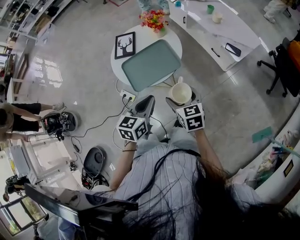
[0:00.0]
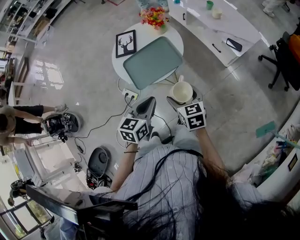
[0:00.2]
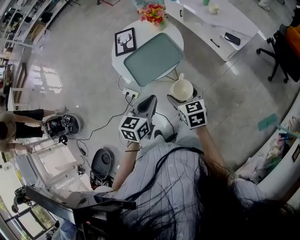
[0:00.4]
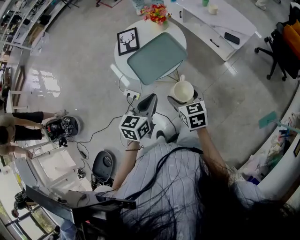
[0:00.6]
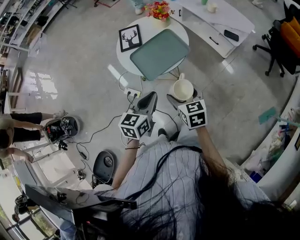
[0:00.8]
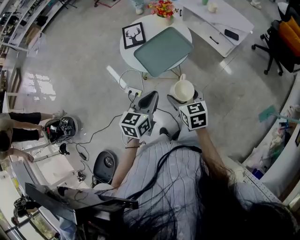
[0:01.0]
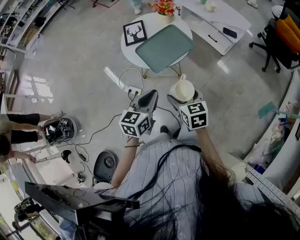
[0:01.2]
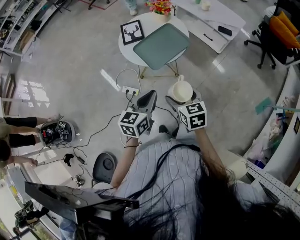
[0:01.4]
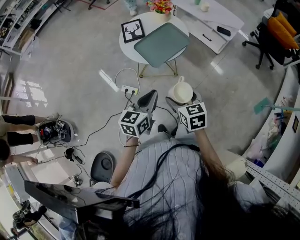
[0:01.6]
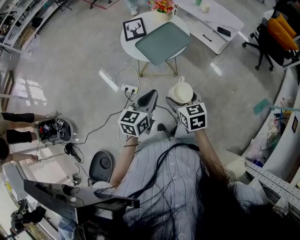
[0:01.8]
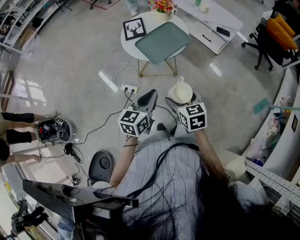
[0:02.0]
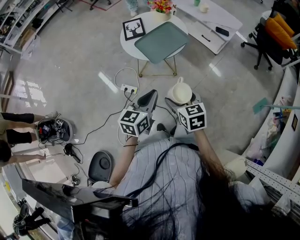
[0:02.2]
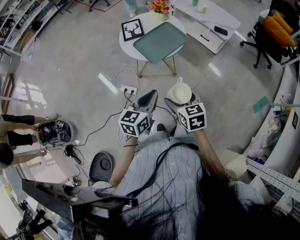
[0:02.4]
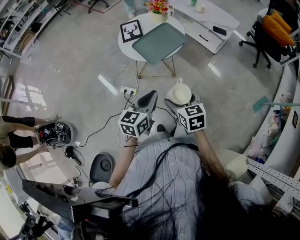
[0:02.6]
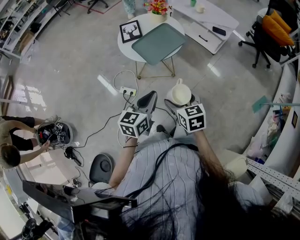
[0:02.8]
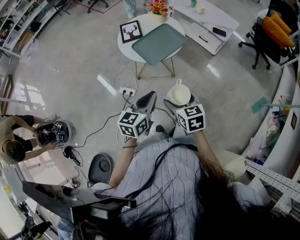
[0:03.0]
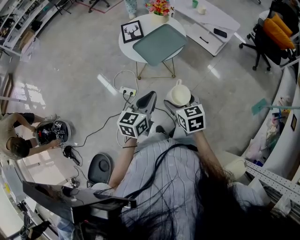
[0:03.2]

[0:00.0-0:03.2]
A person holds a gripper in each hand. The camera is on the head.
0:00.0 to 0:01.6: Both grippers travel together backward and to the left, some 20 cm.
0:01.6 to 0:03.2: The grippers stay close to where they were, moving slightly.

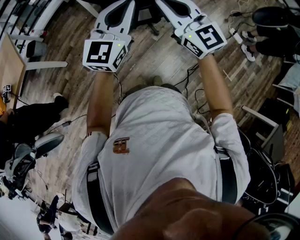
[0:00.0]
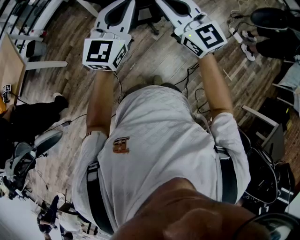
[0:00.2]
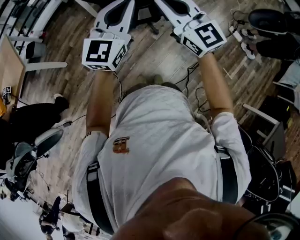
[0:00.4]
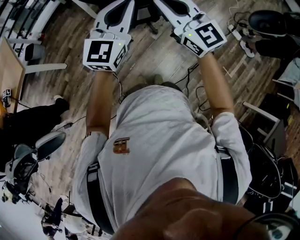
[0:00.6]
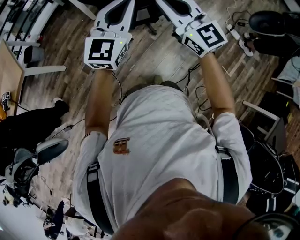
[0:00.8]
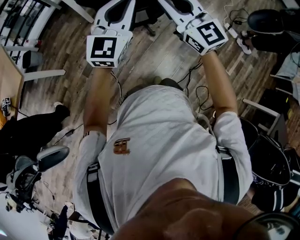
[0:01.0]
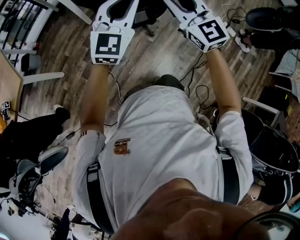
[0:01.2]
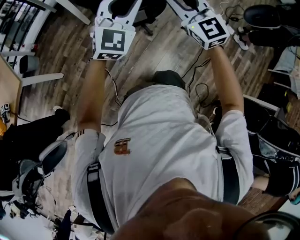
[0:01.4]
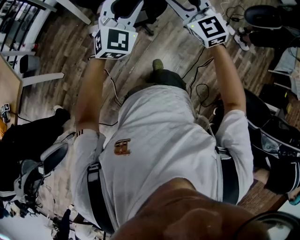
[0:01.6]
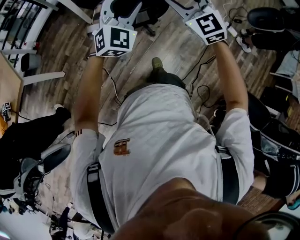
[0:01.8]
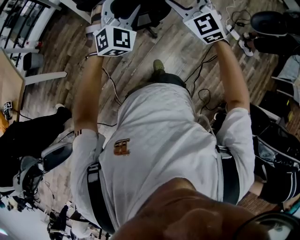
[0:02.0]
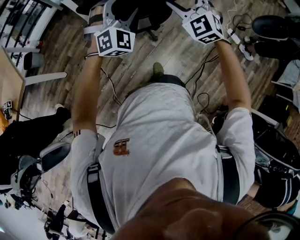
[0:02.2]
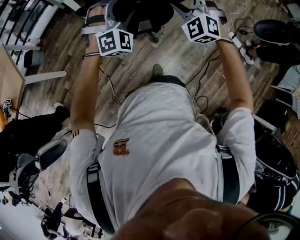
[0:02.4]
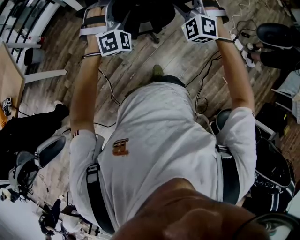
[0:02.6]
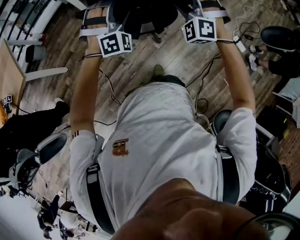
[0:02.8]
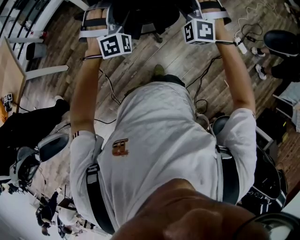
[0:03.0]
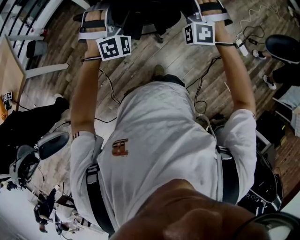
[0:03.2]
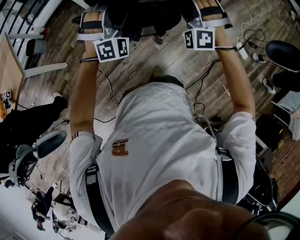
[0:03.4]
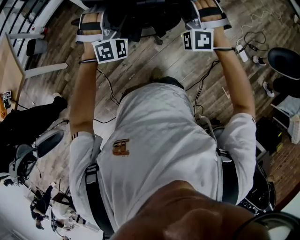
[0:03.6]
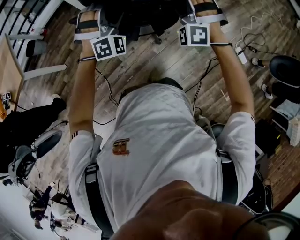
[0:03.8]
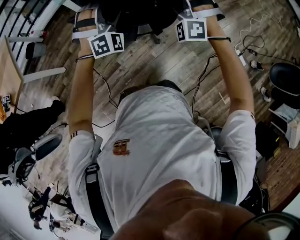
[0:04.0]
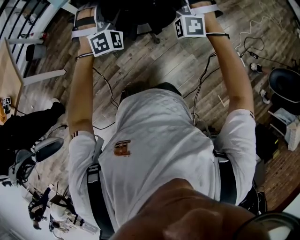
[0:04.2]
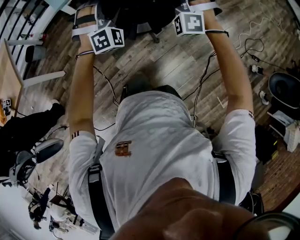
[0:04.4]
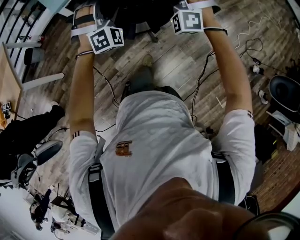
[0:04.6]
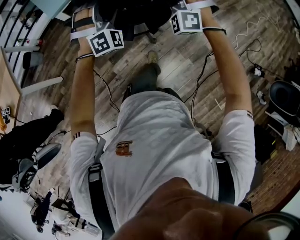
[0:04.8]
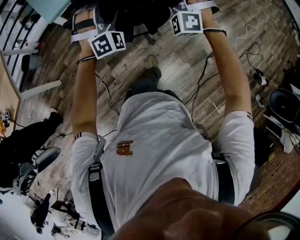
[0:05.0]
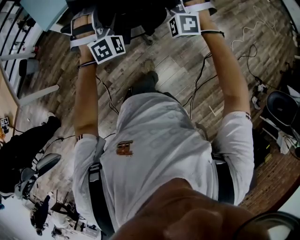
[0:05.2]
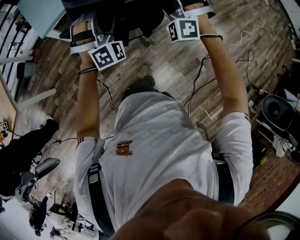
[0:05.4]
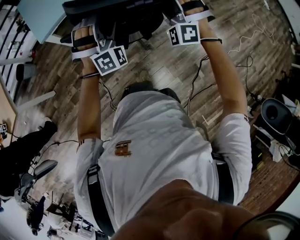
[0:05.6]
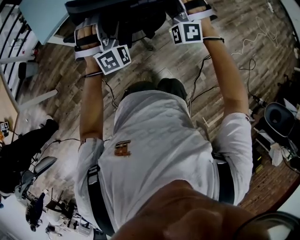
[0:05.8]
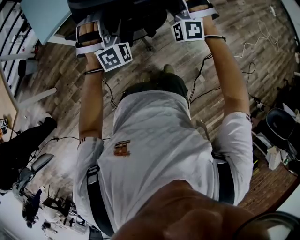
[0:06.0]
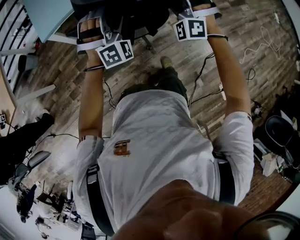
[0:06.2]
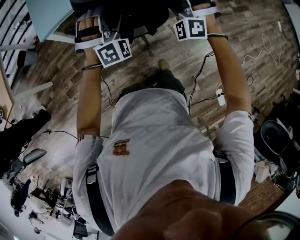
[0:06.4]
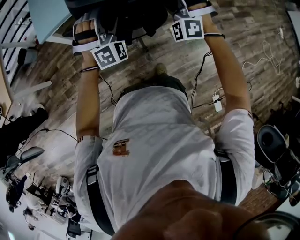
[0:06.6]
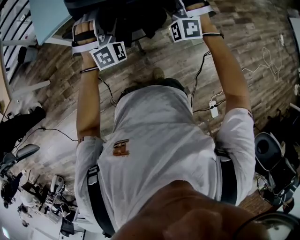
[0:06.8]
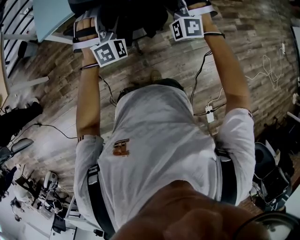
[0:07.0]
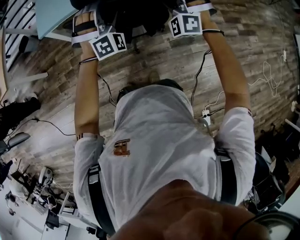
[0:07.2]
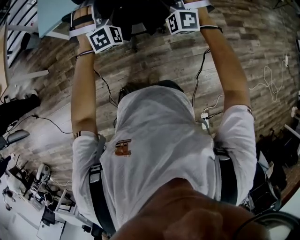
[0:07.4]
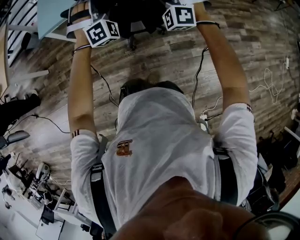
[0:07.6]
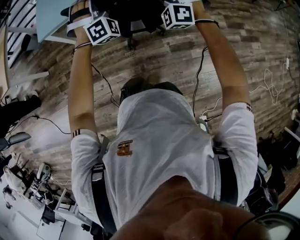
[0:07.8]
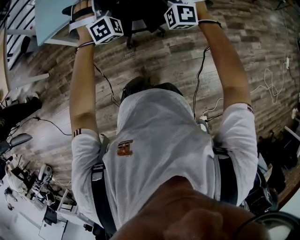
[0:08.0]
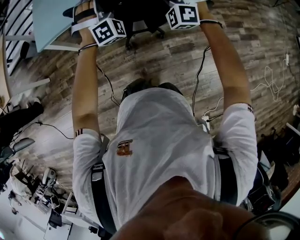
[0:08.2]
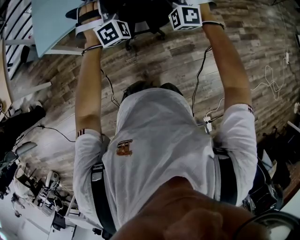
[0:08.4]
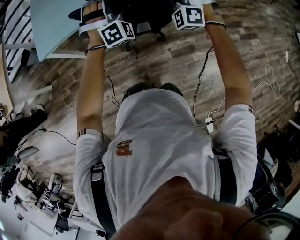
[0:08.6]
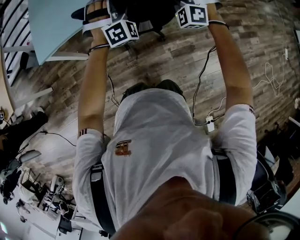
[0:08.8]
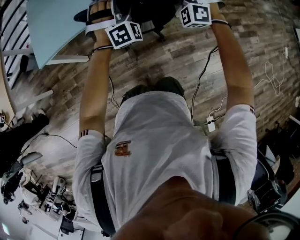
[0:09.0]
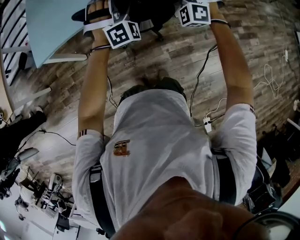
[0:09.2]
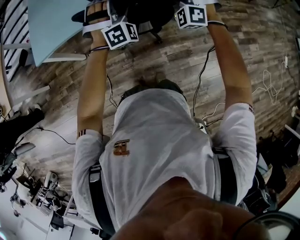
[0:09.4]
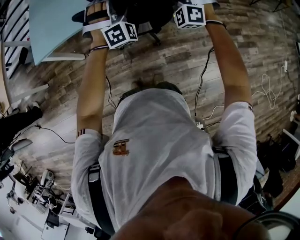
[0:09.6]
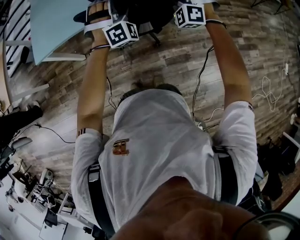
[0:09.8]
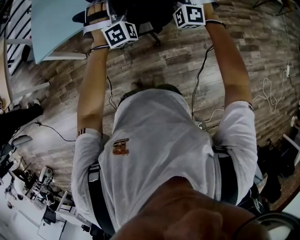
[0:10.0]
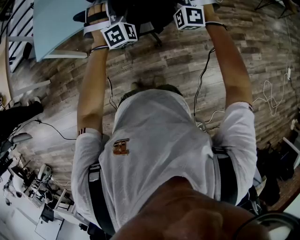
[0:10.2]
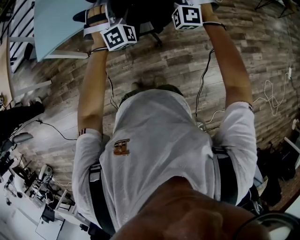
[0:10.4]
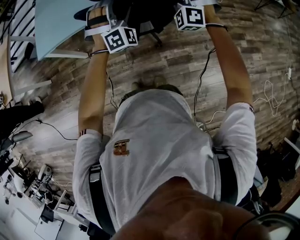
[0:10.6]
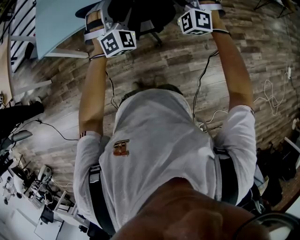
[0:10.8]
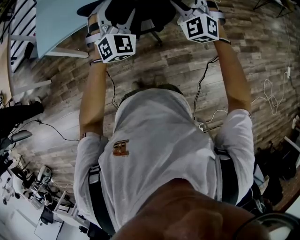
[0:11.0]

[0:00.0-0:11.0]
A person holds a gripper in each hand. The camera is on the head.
0:00.0 to 0:01.6: The grippers both shift forward by about 5 cm. The left gripper changes its angle by about 30 degrees, and opens; the right gripper turns by roughly 30 degrees, and opens up.
0:01.6 to 0:03.2: Both grippers move forward, some 20 cm. The right gripper twists about 60 degrees counterclockwise, seen from behind, and opens up, while the left gripper changes its angle by some 50 degrees, and opens its fingers.
0:03.2 to 0:04.8: The two grippers go roughly 25 cm forward.
0:04.8 to 0:06.2: The grippers both shift forward and to the right by approximately 30 cm.
0:06.2 to 0:07.8: Both grippers move forward and to the right, approximately 30 cm.
0:07.8 to 0:09.4: The grippers both shift forward and to the right by roughly 15 cm.
0:09.4 to 0:11.0: The two grippers go approximately 10 cm backward. The right gripper turns by about 20 degrees. The left gripper swivels approximately 20 degrees.

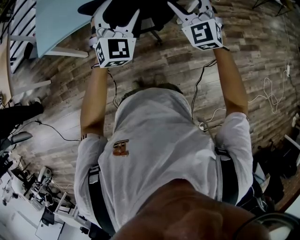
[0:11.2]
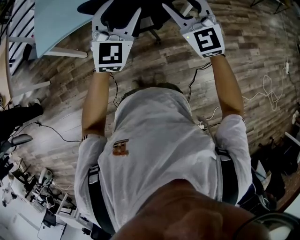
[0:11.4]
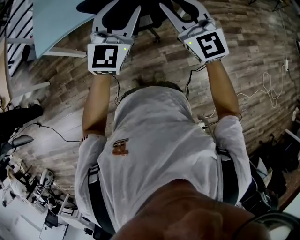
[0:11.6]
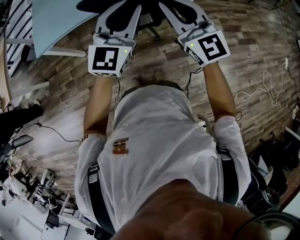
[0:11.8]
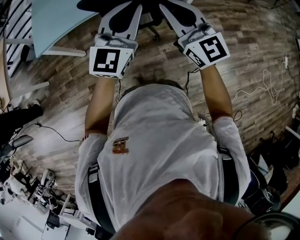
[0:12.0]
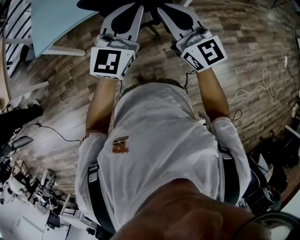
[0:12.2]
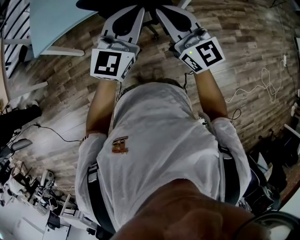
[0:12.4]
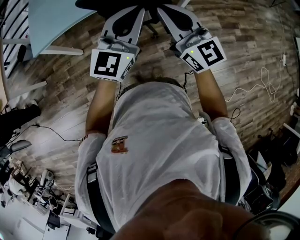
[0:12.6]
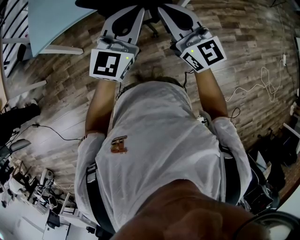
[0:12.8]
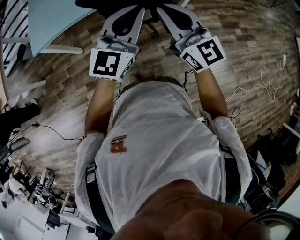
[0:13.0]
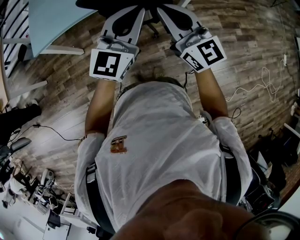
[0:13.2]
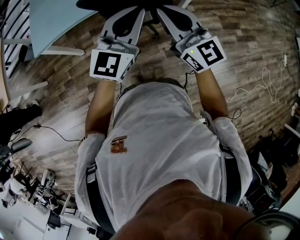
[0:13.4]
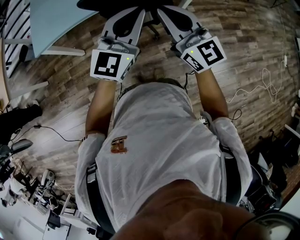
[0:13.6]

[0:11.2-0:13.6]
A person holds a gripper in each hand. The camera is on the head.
0:11.2 to 0:12.4: The left gripper travels backward by roughly 10 cm, changes its angle by about 40 degrees, and closes up, while the right gripper is displaced backward and to the left by roughly 15 cm, twists about 40 degrees clockwise, seen from behind, and closes.
0:12.4 to 0:13.6: Neither gripper changes place.

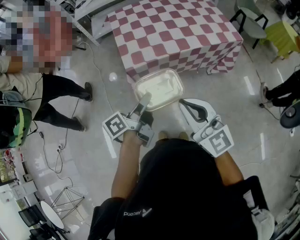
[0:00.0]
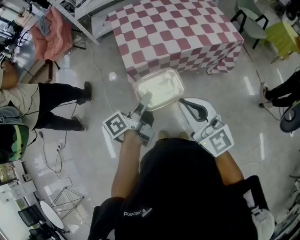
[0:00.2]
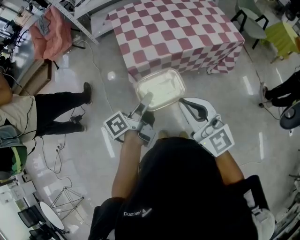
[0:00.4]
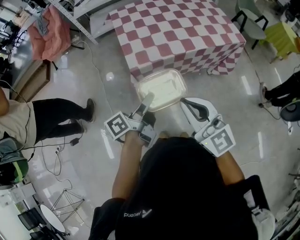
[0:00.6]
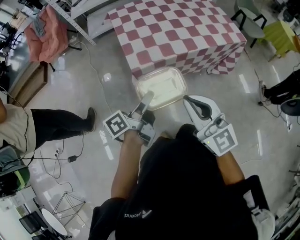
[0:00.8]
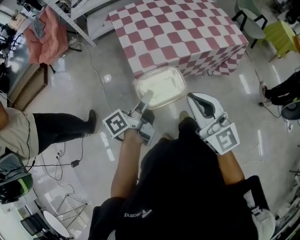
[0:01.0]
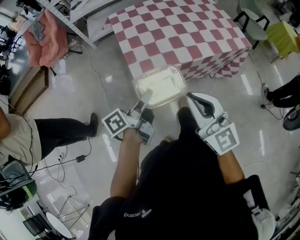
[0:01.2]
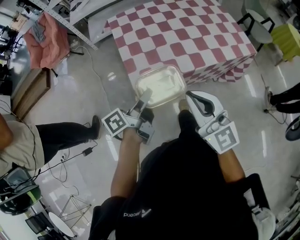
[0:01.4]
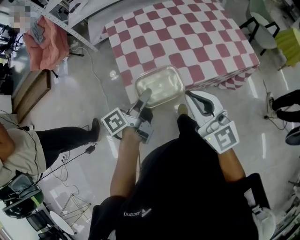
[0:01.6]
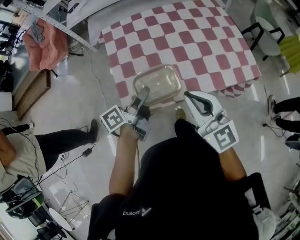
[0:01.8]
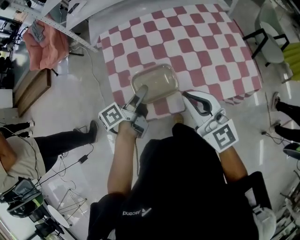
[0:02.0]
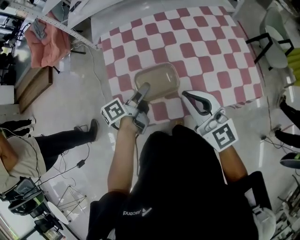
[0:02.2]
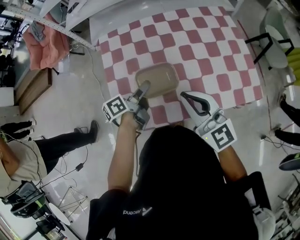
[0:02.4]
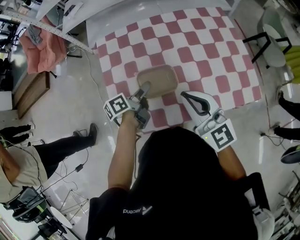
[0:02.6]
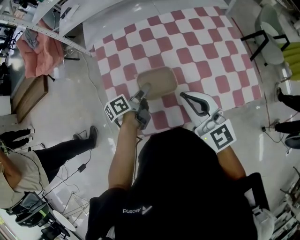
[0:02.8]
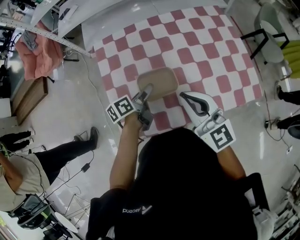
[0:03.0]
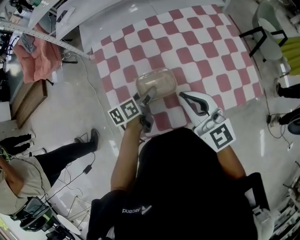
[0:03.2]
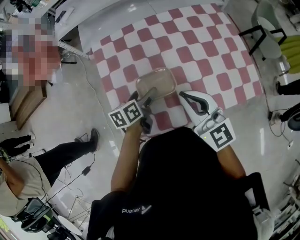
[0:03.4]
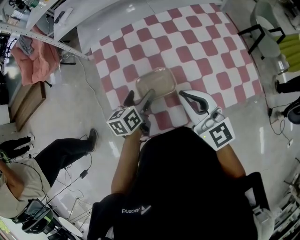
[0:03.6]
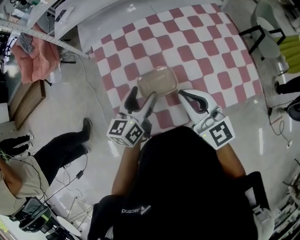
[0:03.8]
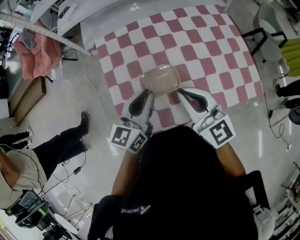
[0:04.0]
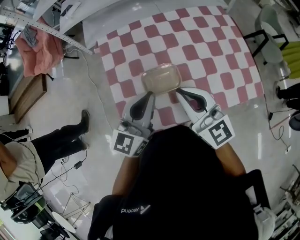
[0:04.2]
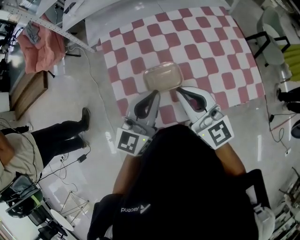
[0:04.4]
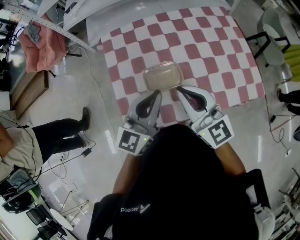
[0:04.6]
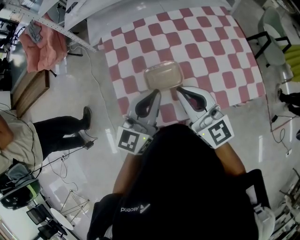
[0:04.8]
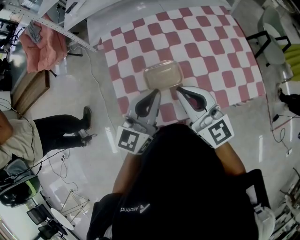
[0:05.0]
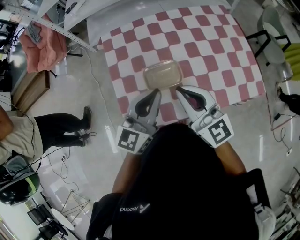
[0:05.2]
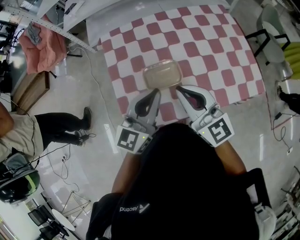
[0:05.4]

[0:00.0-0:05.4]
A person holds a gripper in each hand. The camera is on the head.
0:00.0 to 0:01.4: The grippers both shift forward by approximately 15 cm.
0:01.4 to 0:02.8: Both grippers travel together forward, approximately 30 cm.
0:02.8 to 0:04.0: The left gripper moves upward, some 15 cm, rolls clockwise, seen from behind, by approximately 60 degrees, and opens and closes again.
0:04.0 to 0:05.4: The left gripper moves some 5 cm.

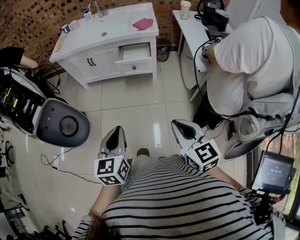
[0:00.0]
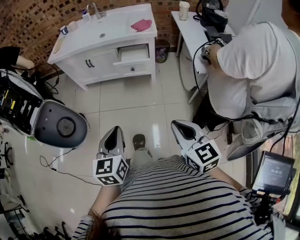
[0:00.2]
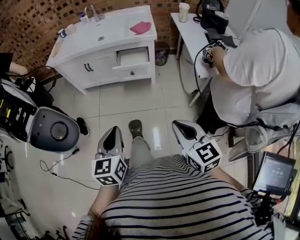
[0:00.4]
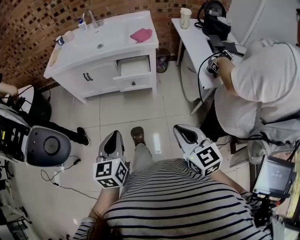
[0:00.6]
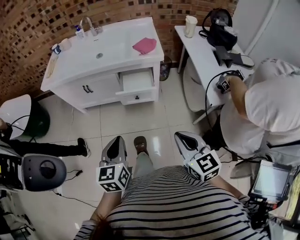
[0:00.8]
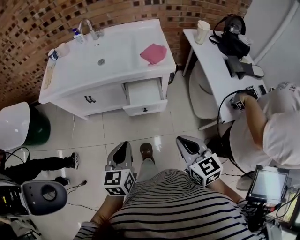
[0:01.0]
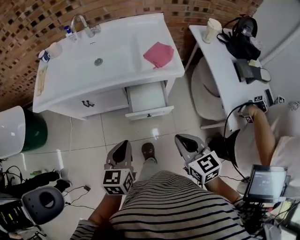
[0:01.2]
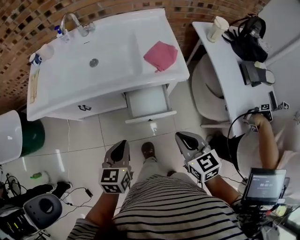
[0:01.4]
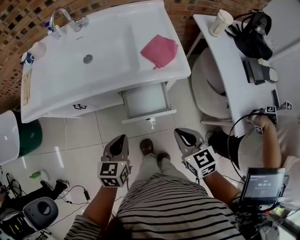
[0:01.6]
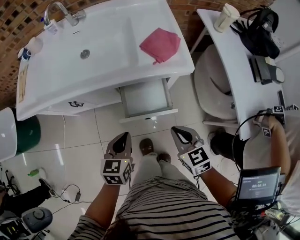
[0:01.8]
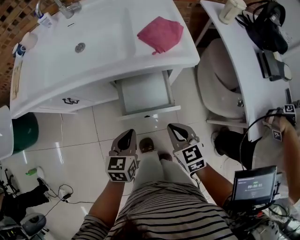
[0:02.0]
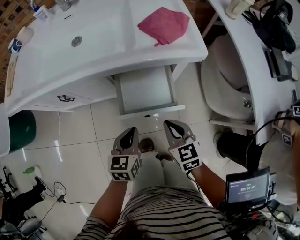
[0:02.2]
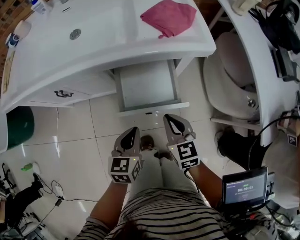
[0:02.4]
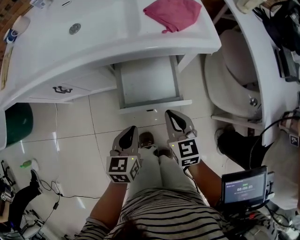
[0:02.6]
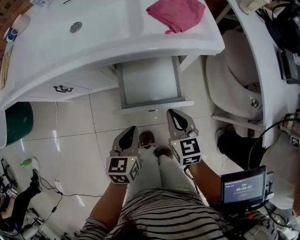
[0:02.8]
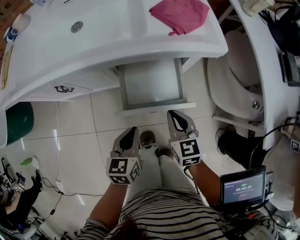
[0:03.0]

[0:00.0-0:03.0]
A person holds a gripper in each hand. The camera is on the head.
0:00.0 to 0:01.6: The pair of grippers is taken forward, roughly 50 cm. The left gripper rotates some 20 degrees.
0:01.6 to 0:03.0: The two grippers go roughly 20 cm downward.
